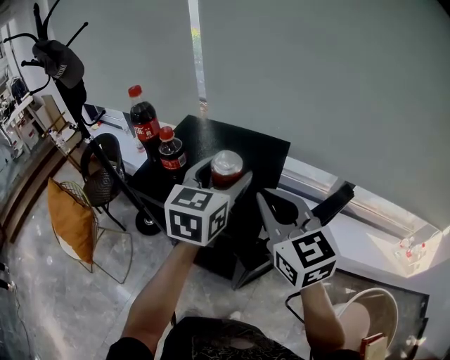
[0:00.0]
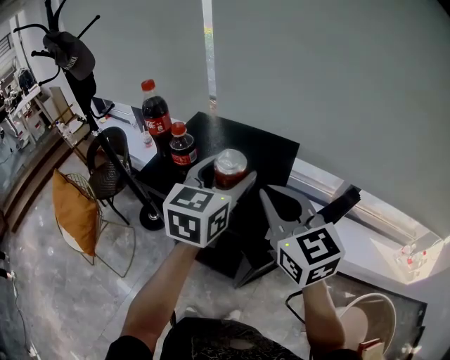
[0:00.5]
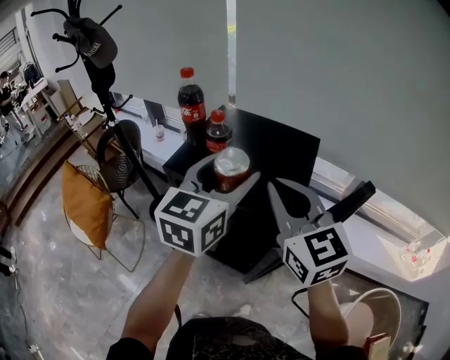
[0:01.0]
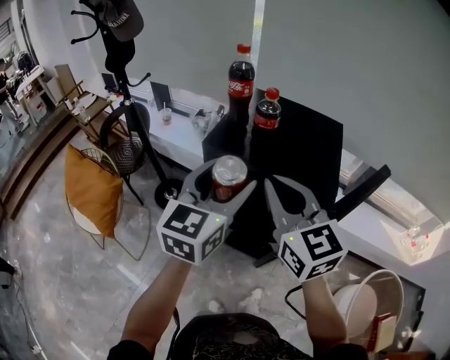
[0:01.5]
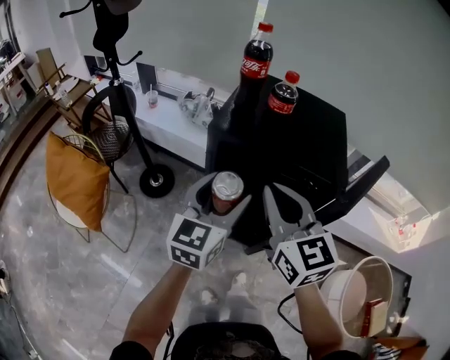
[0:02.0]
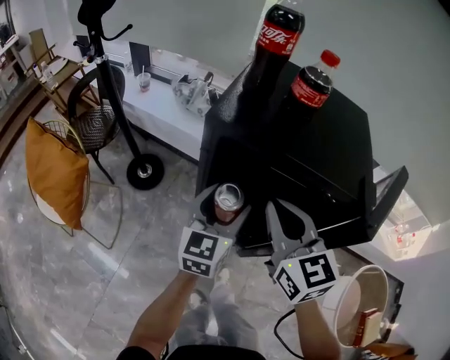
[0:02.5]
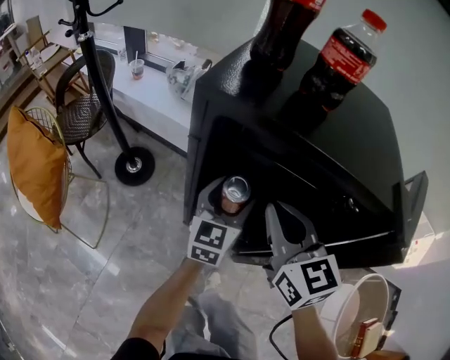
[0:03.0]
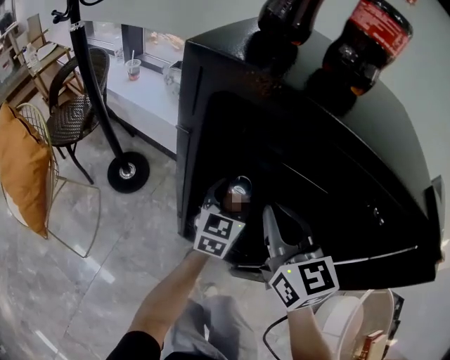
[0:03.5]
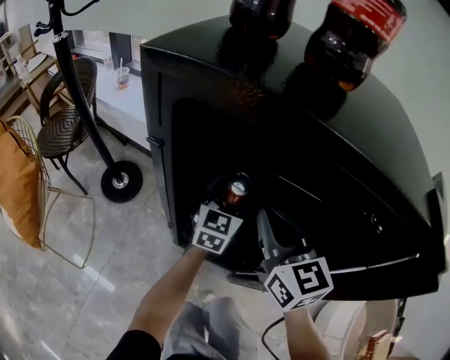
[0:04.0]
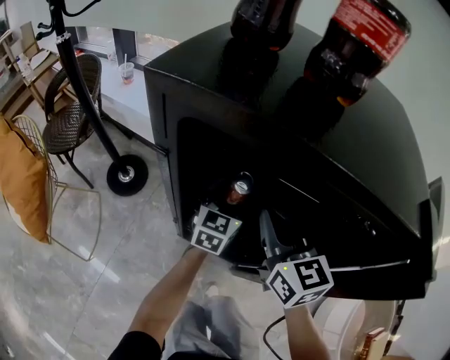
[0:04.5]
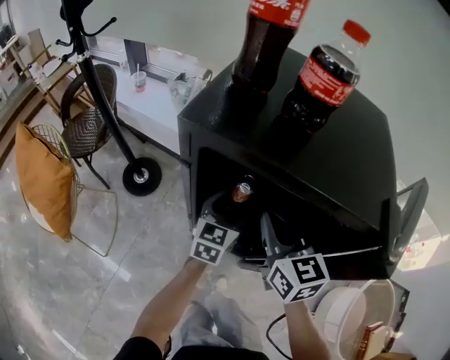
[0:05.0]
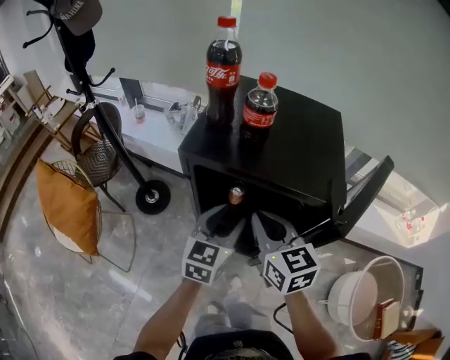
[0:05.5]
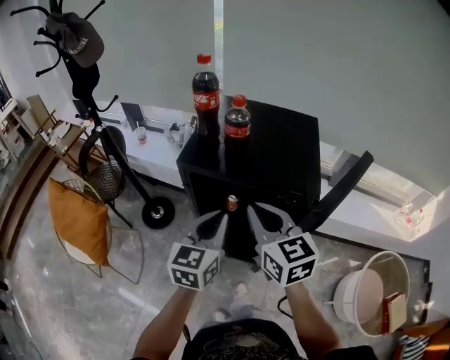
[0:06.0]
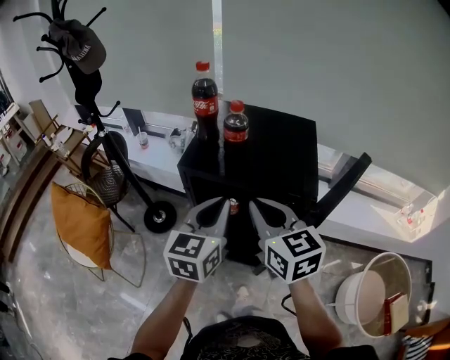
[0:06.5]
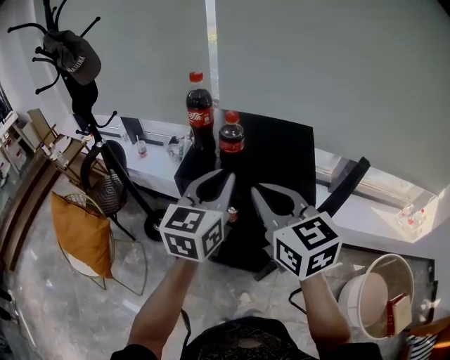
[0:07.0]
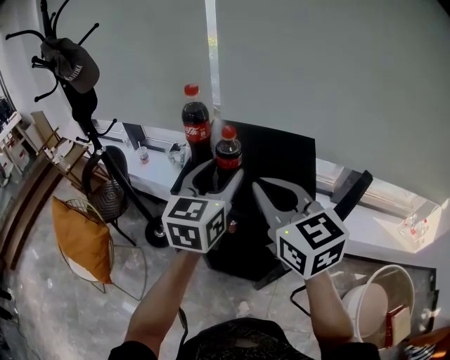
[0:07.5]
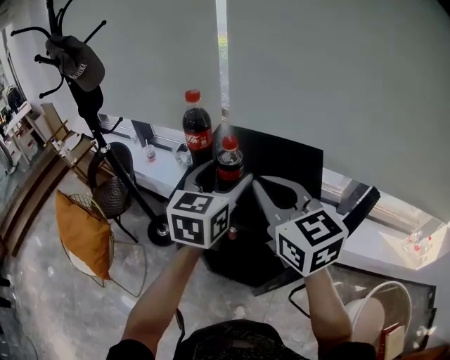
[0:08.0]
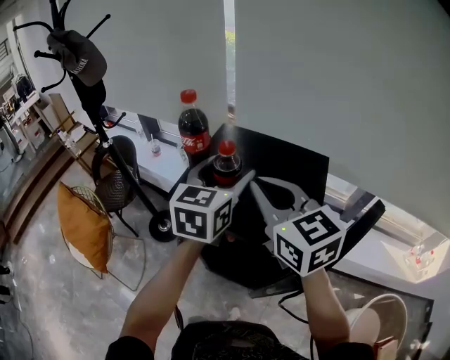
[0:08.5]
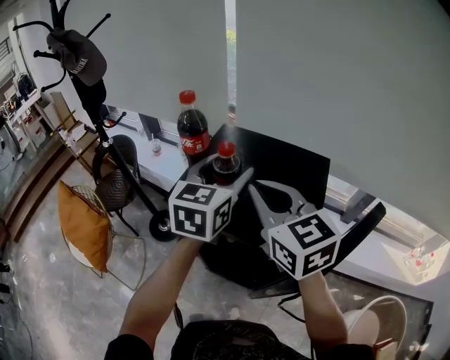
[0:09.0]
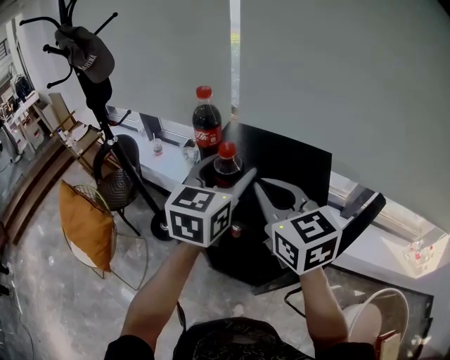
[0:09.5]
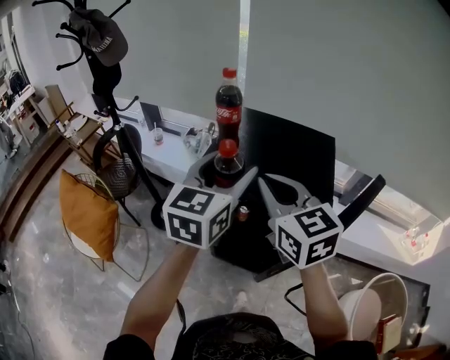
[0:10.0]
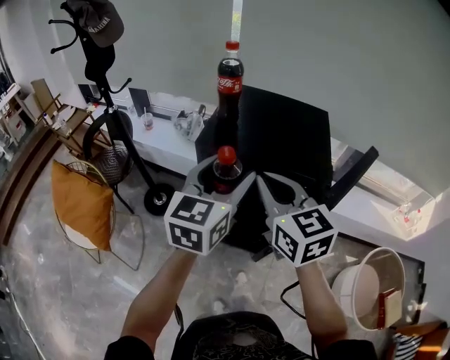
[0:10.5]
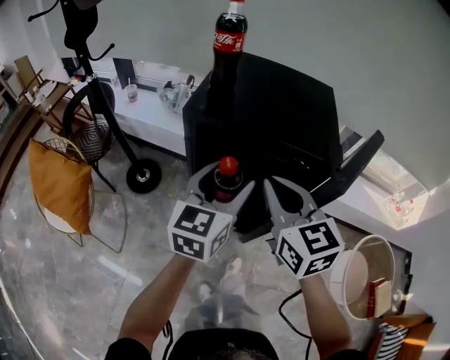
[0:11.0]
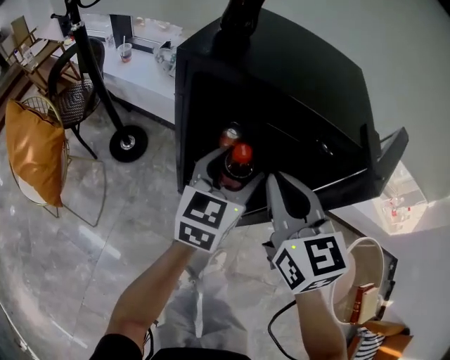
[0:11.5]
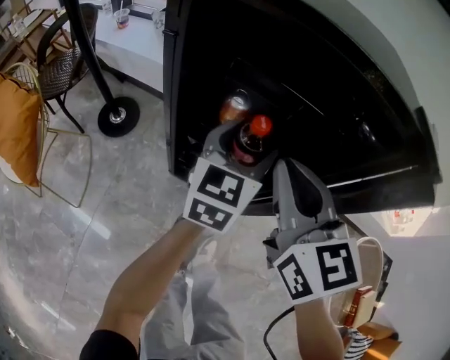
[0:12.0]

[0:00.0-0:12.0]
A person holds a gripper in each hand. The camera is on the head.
0:00.0 to 0:02.0: The right gripper is displaced to the left by some 25 cm. The left gripper shifts some 30 cm to the left, backward and downward.
0:02.0 to 0:04.0: The grippers both shift downward and forward by approximately 35 cm.
0:04.0 to 0:06.0: The grippers both shift upward and backward by about 35 cm. The left gripper closes up.
0:06.0 to 0:08.0: The right gripper travels upward and forward by approximately 15 cm; the left gripper shifts roughly 20 cm forward and upward, and opens up.
0:08.0 to 0:10.0: The right gripper heads to the left, covering roughly 5 cm. The left gripper heads backward and to the left, covering approximately 10 cm.
0:10.0 to 0:12.0: The two grippers go roughly 30 cm downward.

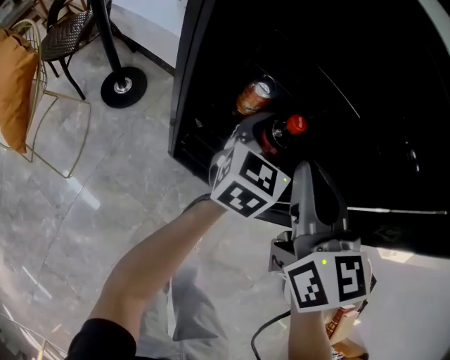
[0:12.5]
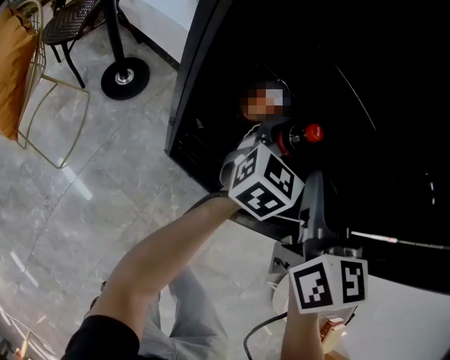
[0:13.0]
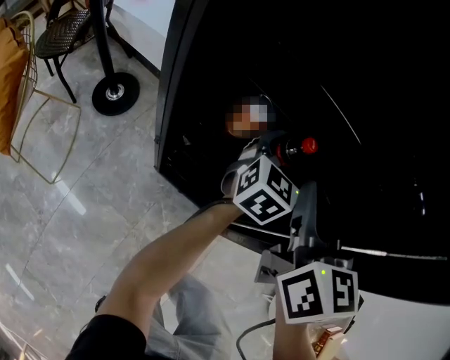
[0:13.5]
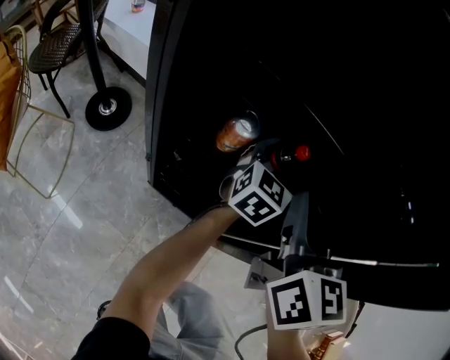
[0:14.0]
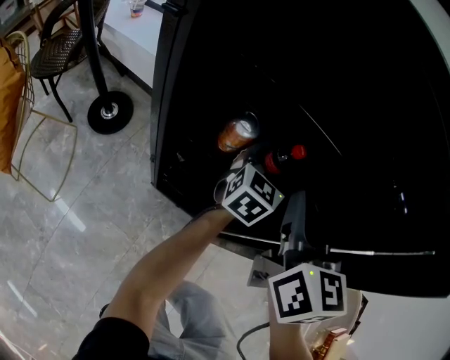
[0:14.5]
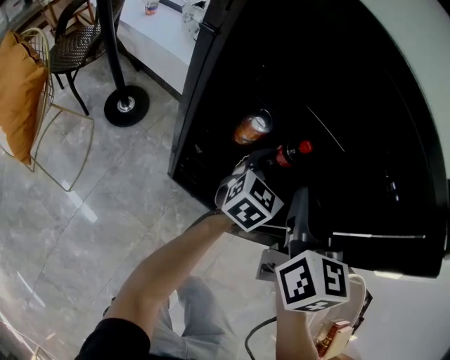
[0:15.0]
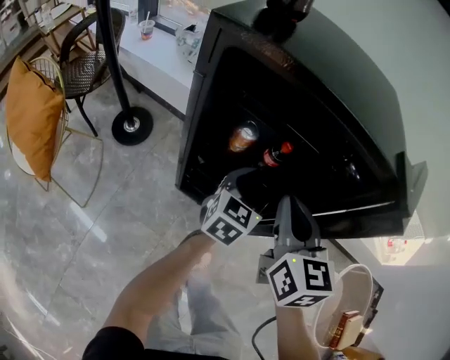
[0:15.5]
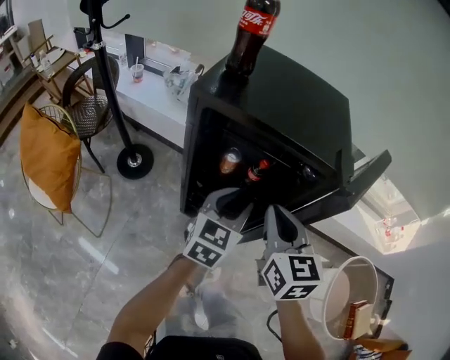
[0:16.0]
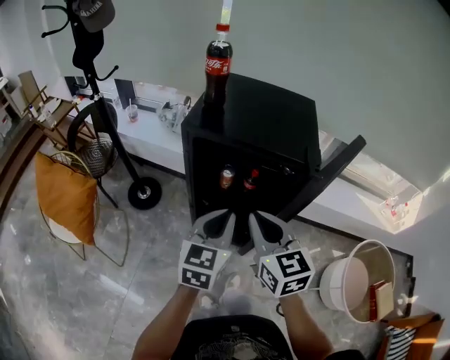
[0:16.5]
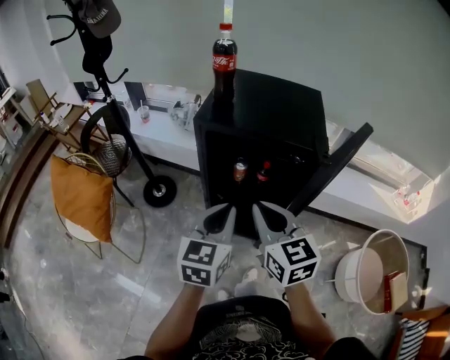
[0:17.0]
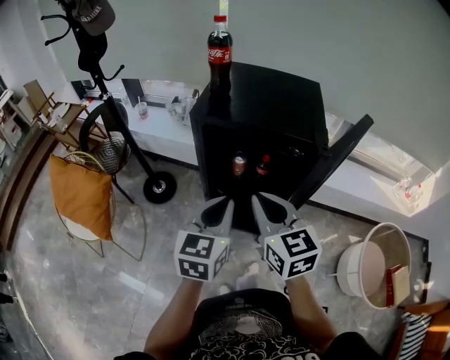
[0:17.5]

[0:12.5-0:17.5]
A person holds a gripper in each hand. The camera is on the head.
0:12.5 to 0:15.0: The left gripper moves about 10 cm forward and comes back.
0:15.0 to 0:17.5: The left gripper is displaced upward, backward and to the left by approximately 40 cm, and closes its fingers; the right gripper goes about 25 cm upward and backward.

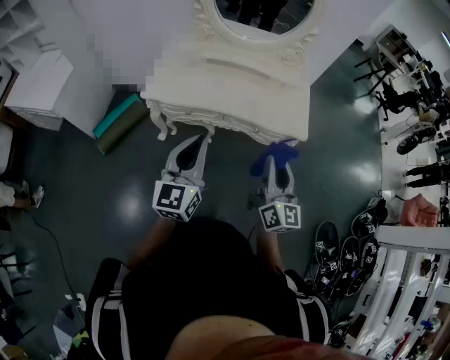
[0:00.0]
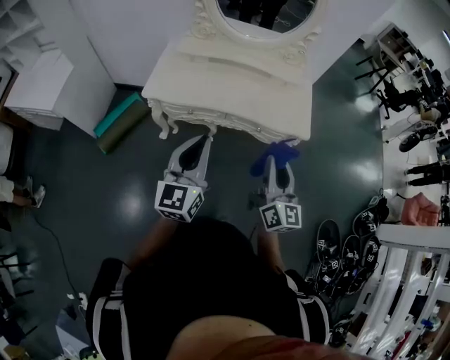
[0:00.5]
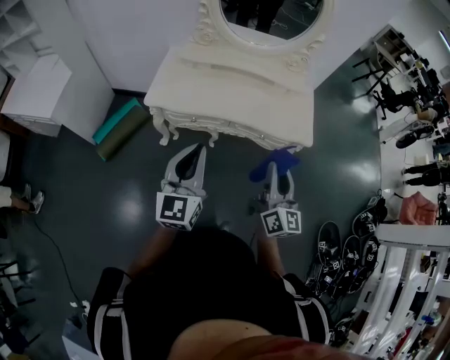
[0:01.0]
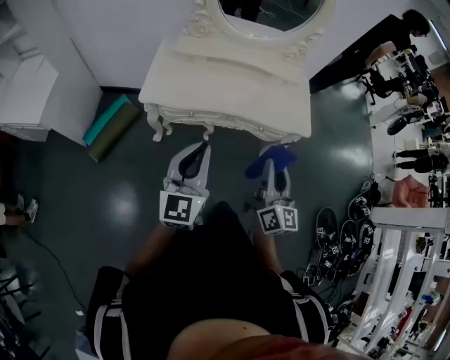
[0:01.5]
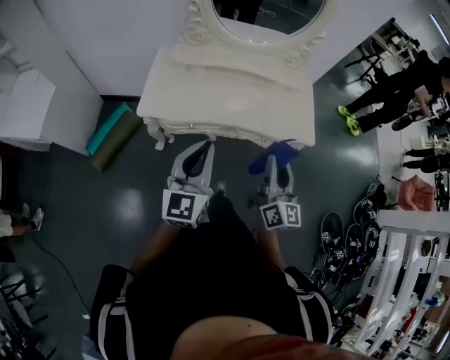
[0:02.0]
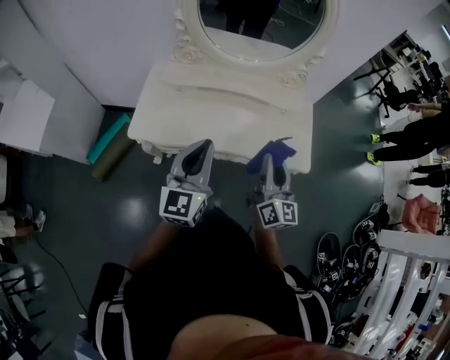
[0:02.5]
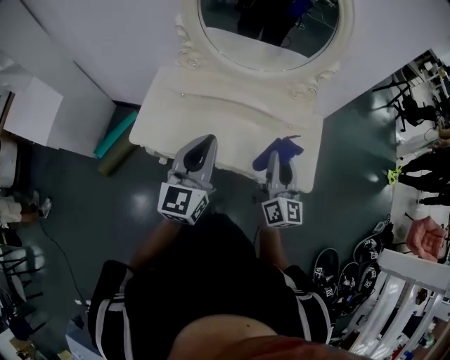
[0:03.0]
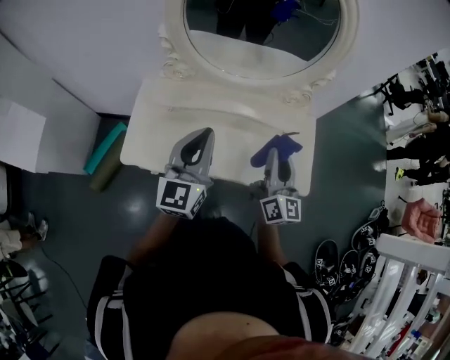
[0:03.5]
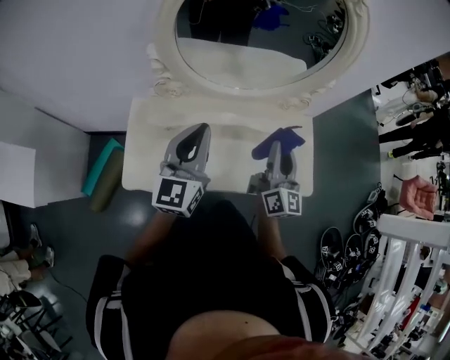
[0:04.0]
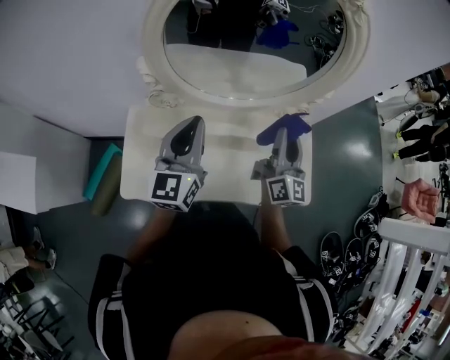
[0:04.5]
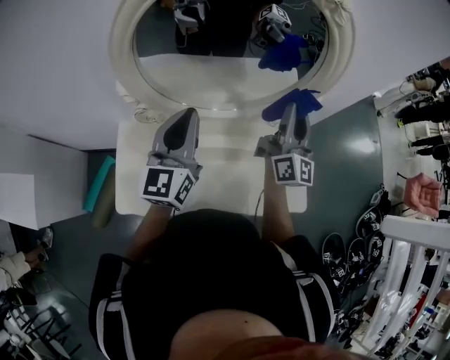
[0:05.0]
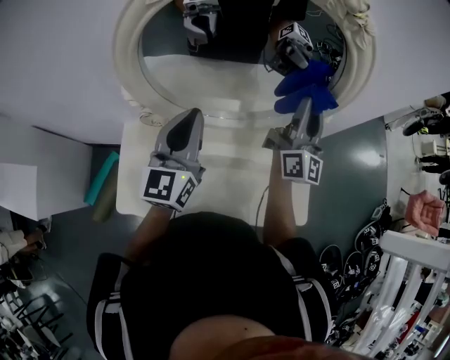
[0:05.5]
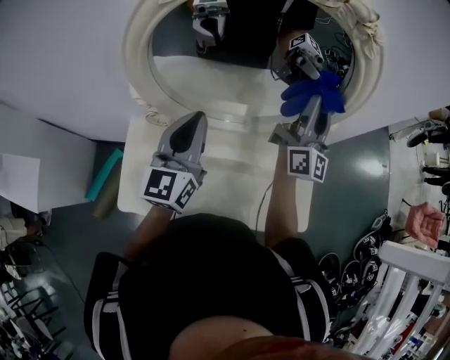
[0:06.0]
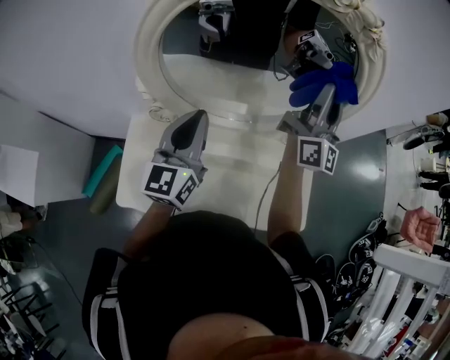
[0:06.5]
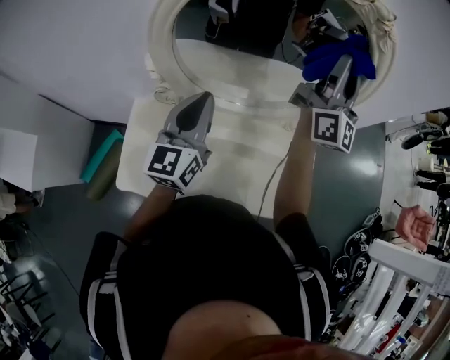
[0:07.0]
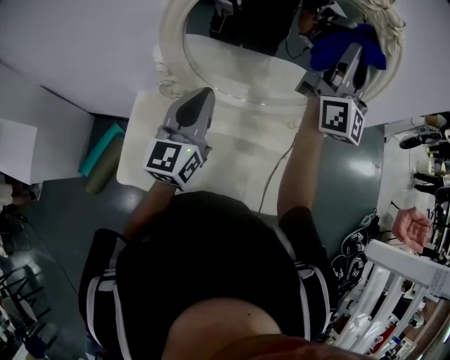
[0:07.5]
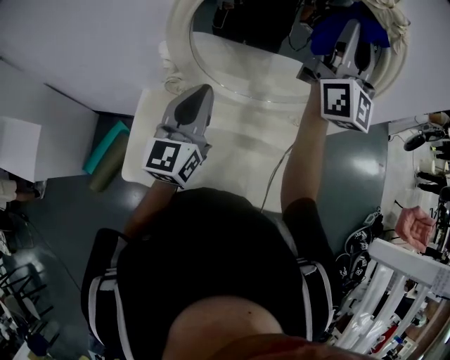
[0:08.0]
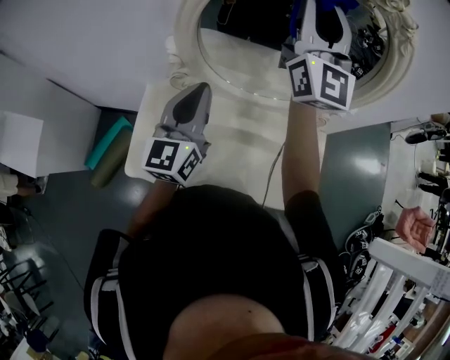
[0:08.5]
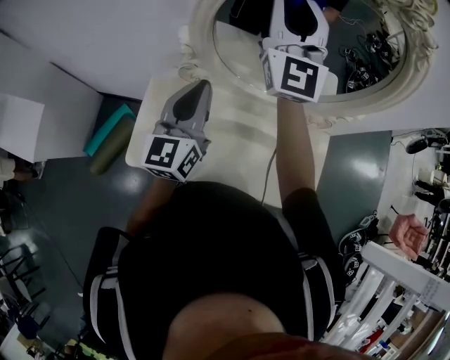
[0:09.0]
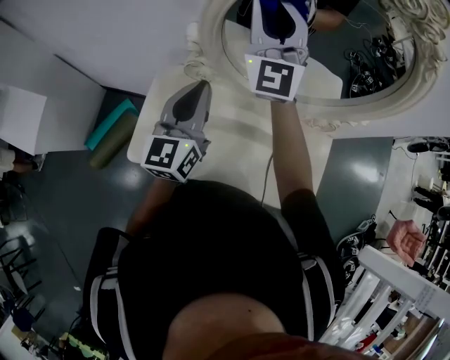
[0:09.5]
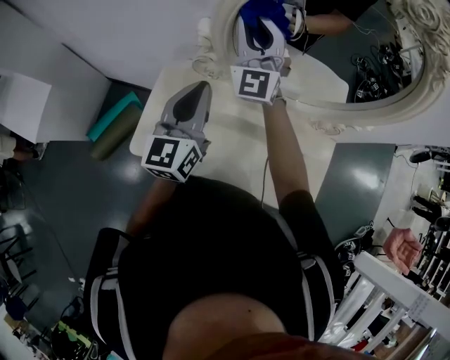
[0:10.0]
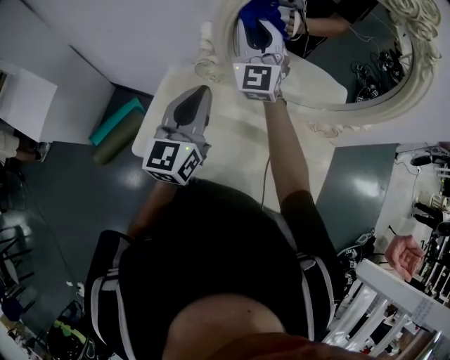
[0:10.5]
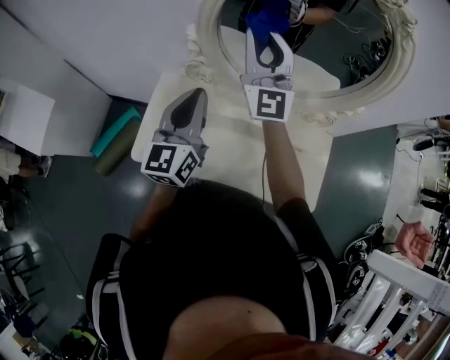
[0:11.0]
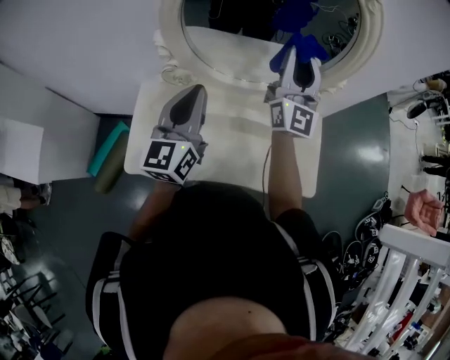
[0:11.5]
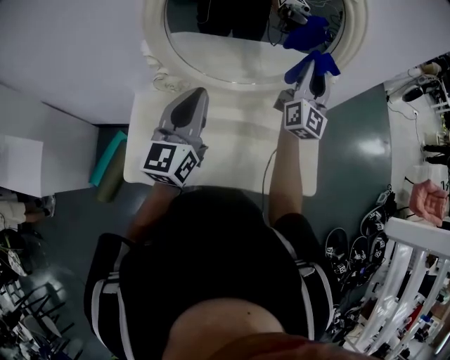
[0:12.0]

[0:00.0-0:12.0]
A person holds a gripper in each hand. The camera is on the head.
0:00.0 to 0:02.0: The grippers both shift forward and to the left by approximately 10 cm.
0:02.0 to 0:04.0: The grippers both shift forward by some 40 cm.
0:04.0 to 0:06.0: The left gripper is displaced forward by roughly 15 cm, while the right gripper goes approximately 30 cm forward and upward, and rotates about 20 degrees.
0:06.0 to 0:08.0: The left gripper travels backward by some 5 cm. The right gripper travels upward and to the left by approximately 20 cm.
0:08.0 to 0:10.0: The left gripper travels to the left by roughly 10 cm, while the right gripper moves to the left and downward, some 35 cm, and turns by about 50 degrees.
0:10.0 to 0:12.0: The right gripper ends up some 40 cm from where it was, and rotates about 50 degrees; the left gripper changes place by roughly 15 cm.
